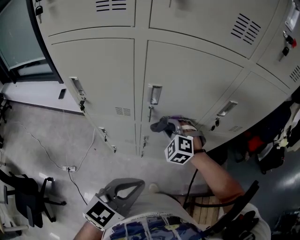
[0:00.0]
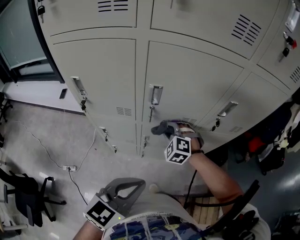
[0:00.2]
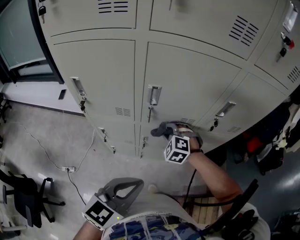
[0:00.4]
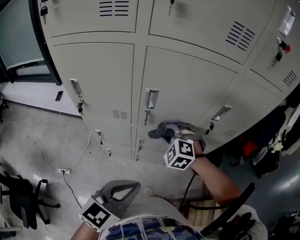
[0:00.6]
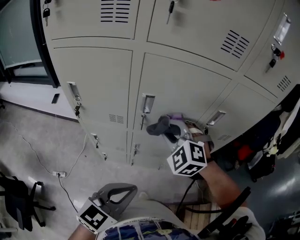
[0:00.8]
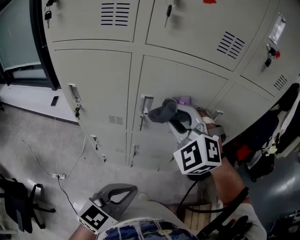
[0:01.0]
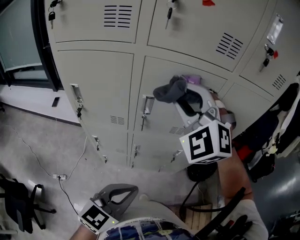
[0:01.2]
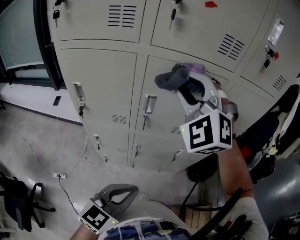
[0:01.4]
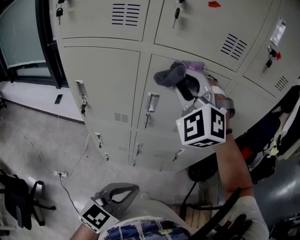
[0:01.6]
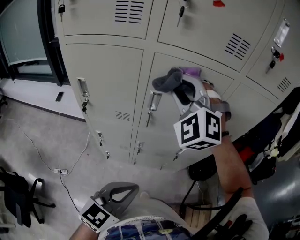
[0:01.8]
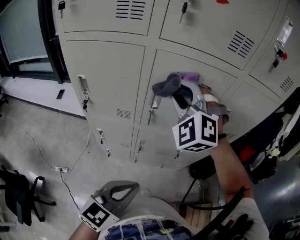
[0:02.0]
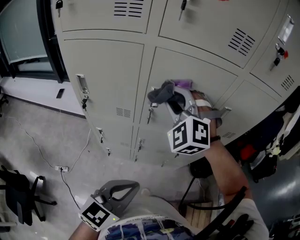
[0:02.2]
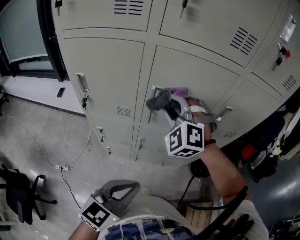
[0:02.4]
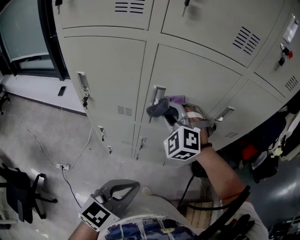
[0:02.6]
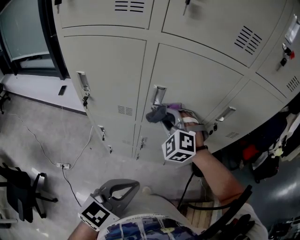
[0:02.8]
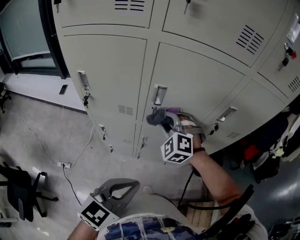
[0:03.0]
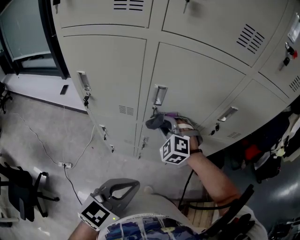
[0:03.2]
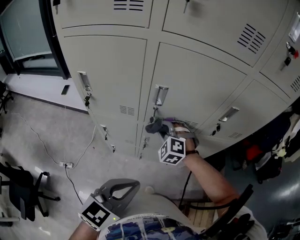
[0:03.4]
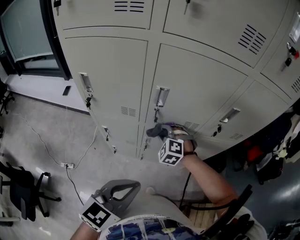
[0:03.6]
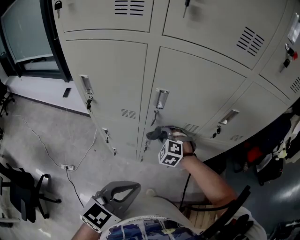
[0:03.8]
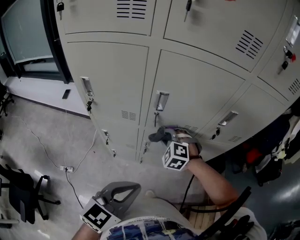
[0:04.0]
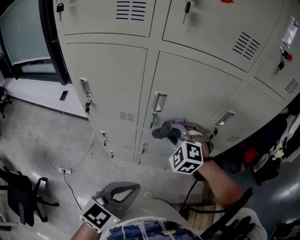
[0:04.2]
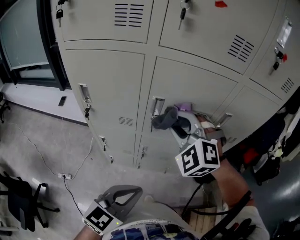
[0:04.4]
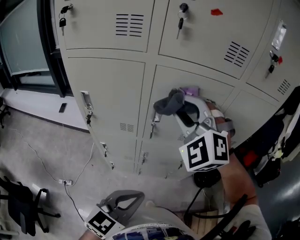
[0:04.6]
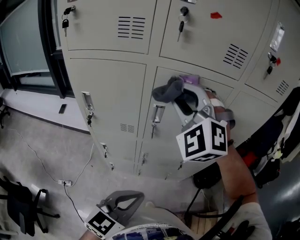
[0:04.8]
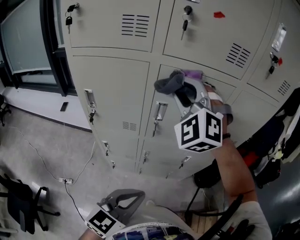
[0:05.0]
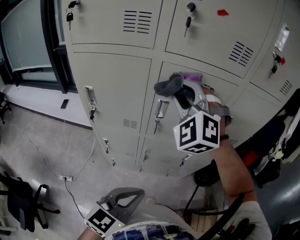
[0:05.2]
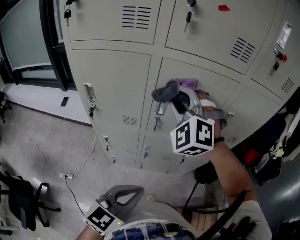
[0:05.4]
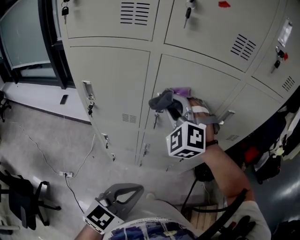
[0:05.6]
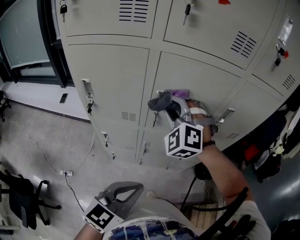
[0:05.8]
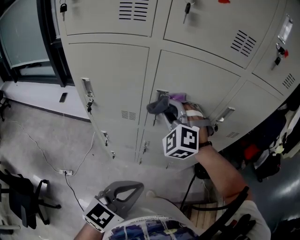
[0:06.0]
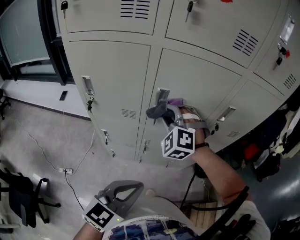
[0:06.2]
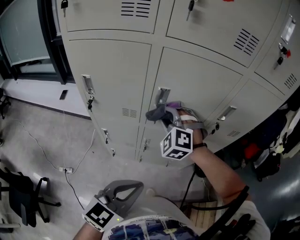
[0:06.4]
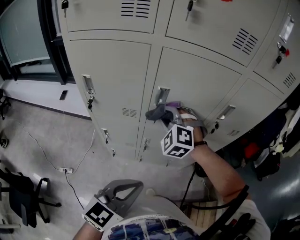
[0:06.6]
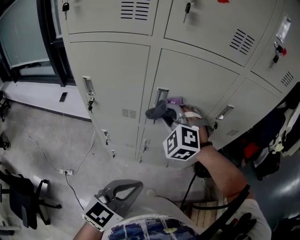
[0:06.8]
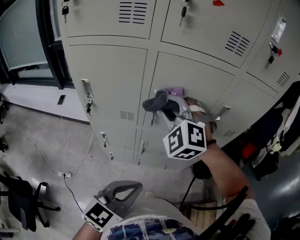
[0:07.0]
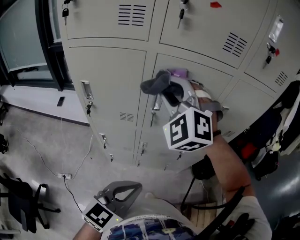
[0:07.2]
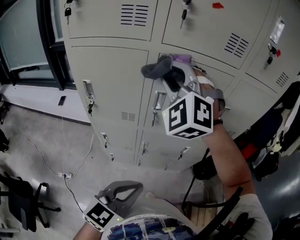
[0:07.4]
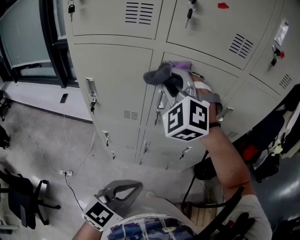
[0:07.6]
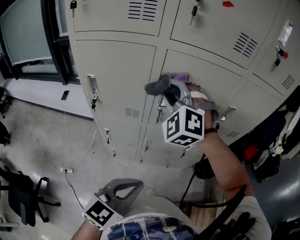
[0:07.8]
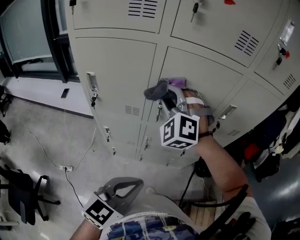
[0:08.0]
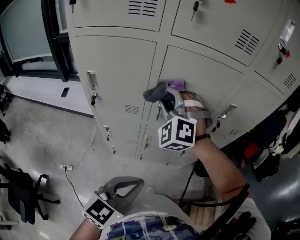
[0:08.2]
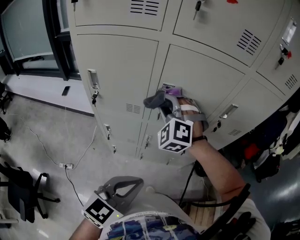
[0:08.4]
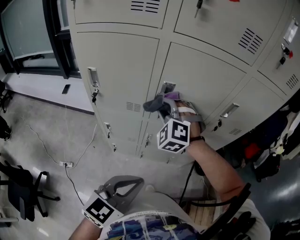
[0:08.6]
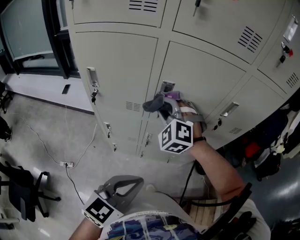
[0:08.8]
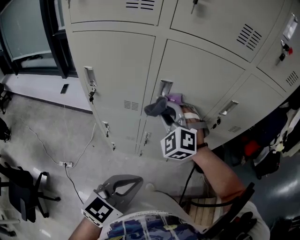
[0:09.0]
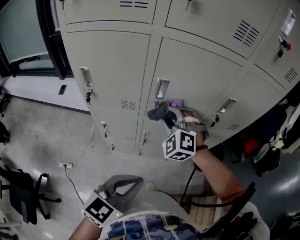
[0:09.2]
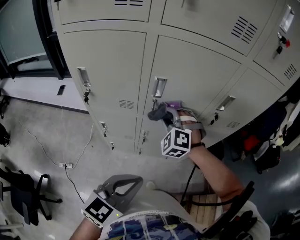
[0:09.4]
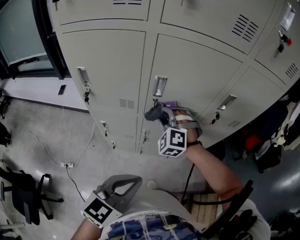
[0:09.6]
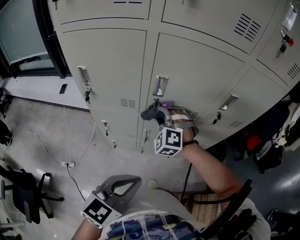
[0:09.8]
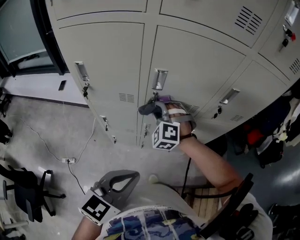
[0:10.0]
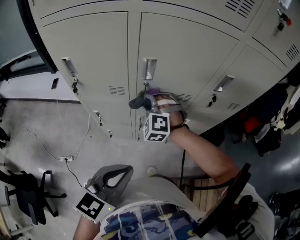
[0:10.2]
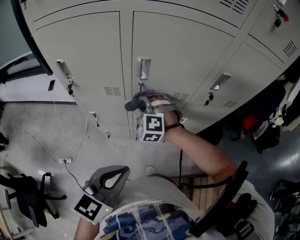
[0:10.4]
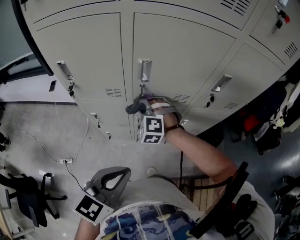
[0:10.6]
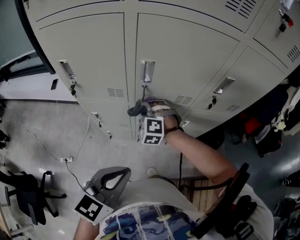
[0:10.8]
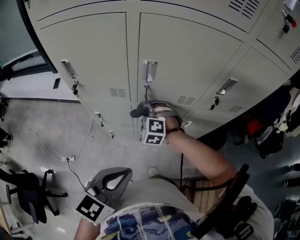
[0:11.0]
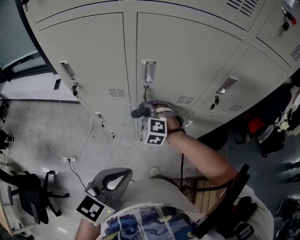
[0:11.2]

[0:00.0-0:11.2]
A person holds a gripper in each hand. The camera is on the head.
0:00.0 to 0:01.6: The right gripper shifts roughly 35 cm upward, and tips its fingers upward by roughly 30 degrees.
0:01.6 to 0:03.2: The right gripper moves downward, some 30 cm, and rotates approximately 30 degrees.
0:03.2 to 0:04.8: The right gripper shifts some 30 cm upward, and turns by approximately 30 degrees.
0:04.8 to 0:06.4: The right gripper travels downward by roughly 20 cm.
0:06.4 to 0:08.0: The right gripper goes approximately 10 cm upward.
0:08.0 to 0:09.6: The right gripper shifts about 15 cm downward.
0:09.6 to 0:11.2: The right gripper shifts approximately 10 cm downward.

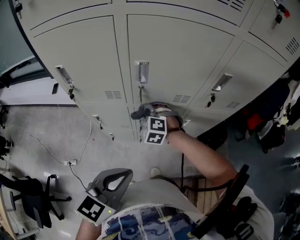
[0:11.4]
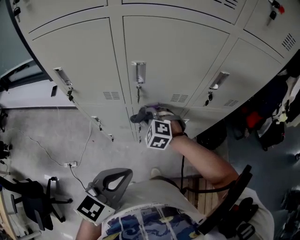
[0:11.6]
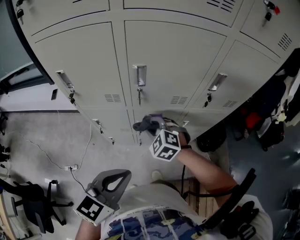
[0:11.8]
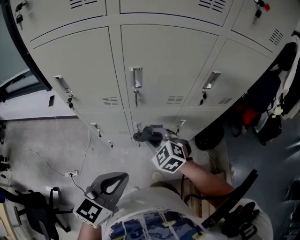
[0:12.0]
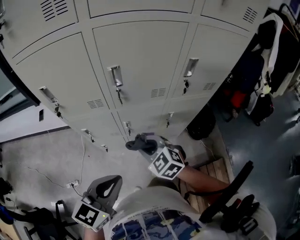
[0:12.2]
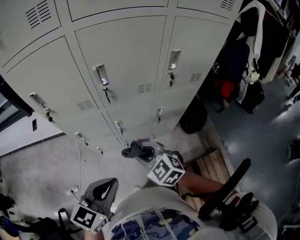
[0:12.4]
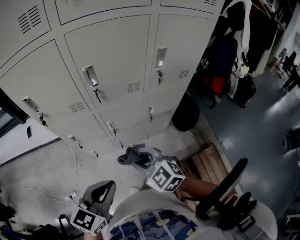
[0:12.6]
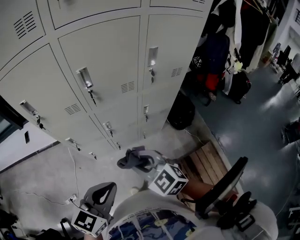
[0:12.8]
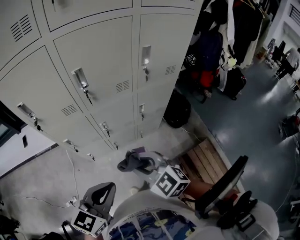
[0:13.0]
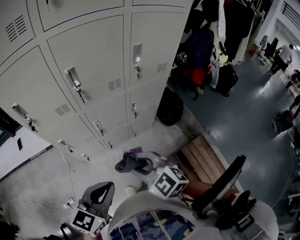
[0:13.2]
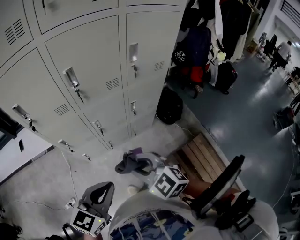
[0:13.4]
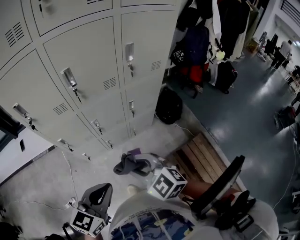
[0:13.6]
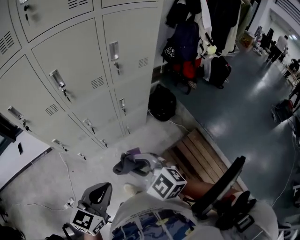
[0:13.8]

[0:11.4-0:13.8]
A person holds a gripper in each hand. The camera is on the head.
0:11.4 to 0:12.6: The left gripper is displaced backward by approximately 5 cm; the right gripper goes some 25 cm backward, and rolls clockwise, seen from behind, by about 40 degrees.
0:12.6 to 0:13.8: The two grippers go about 15 cm backward and to the right.

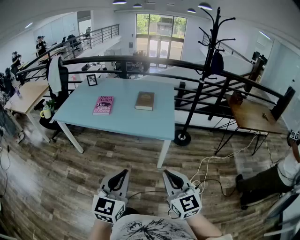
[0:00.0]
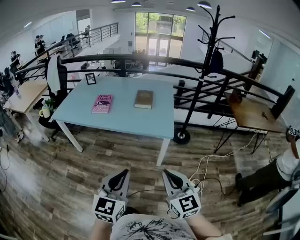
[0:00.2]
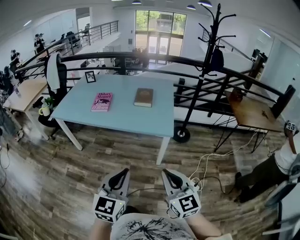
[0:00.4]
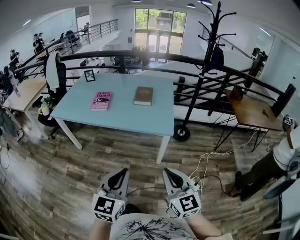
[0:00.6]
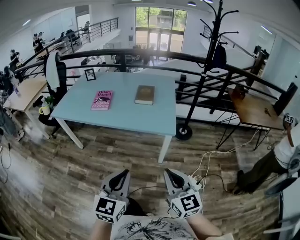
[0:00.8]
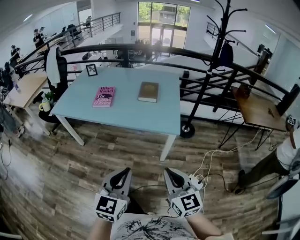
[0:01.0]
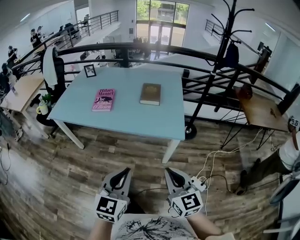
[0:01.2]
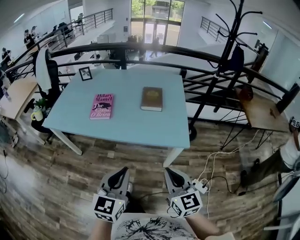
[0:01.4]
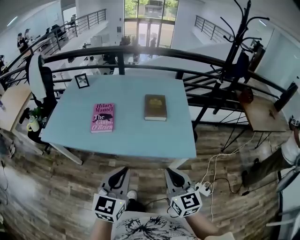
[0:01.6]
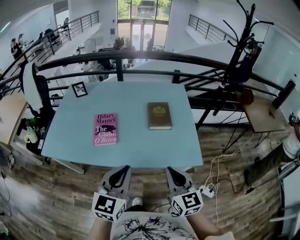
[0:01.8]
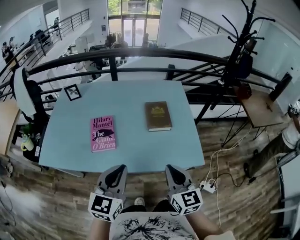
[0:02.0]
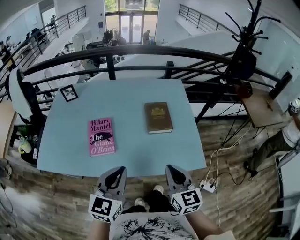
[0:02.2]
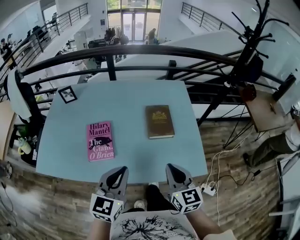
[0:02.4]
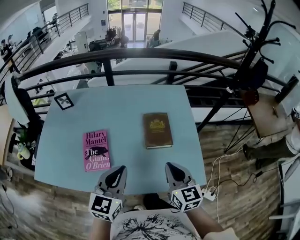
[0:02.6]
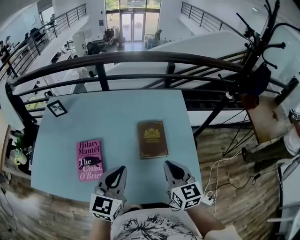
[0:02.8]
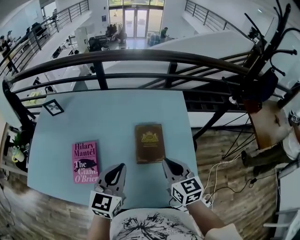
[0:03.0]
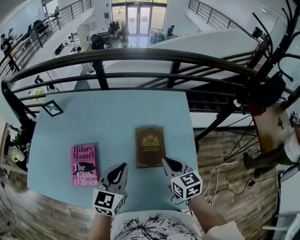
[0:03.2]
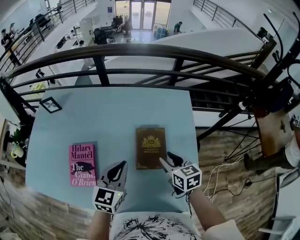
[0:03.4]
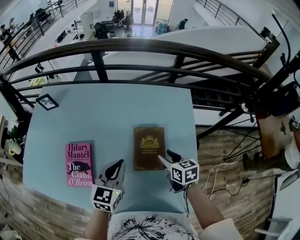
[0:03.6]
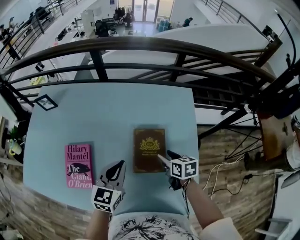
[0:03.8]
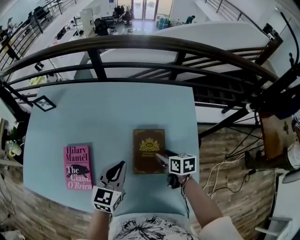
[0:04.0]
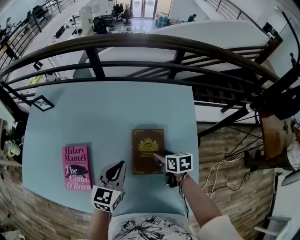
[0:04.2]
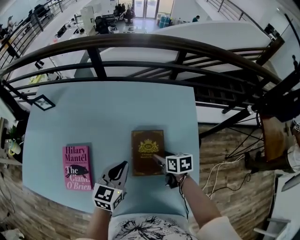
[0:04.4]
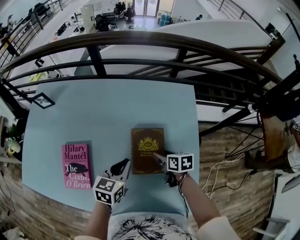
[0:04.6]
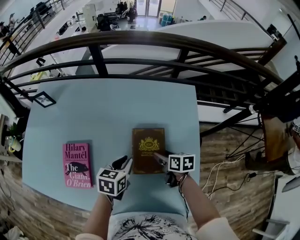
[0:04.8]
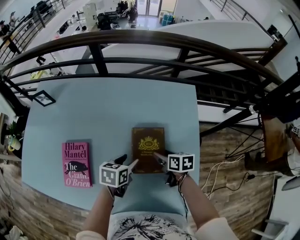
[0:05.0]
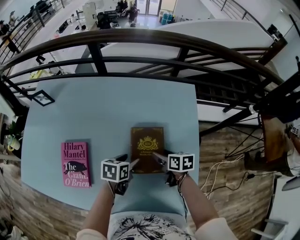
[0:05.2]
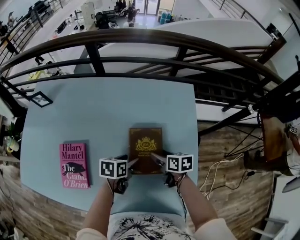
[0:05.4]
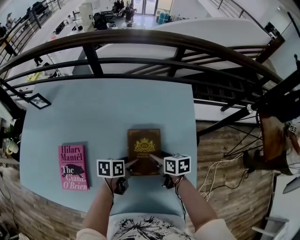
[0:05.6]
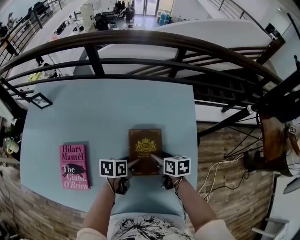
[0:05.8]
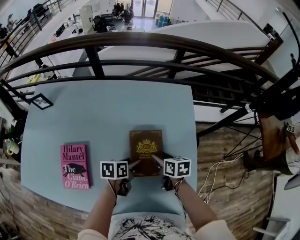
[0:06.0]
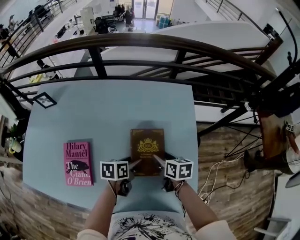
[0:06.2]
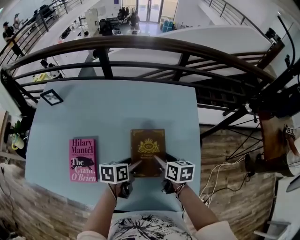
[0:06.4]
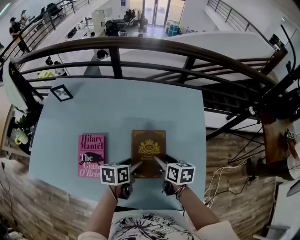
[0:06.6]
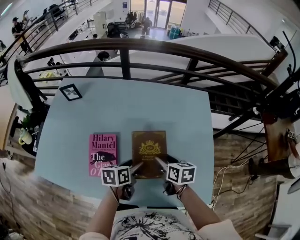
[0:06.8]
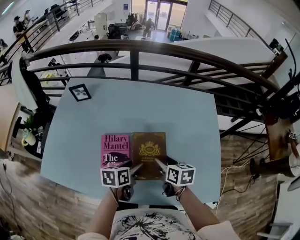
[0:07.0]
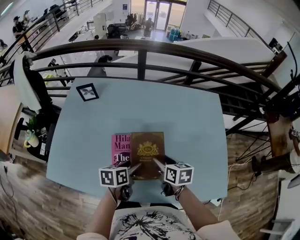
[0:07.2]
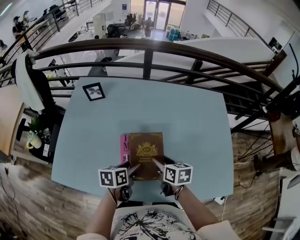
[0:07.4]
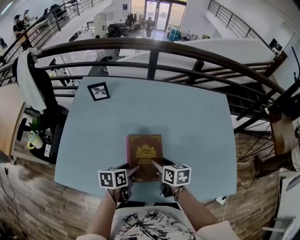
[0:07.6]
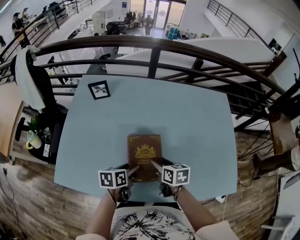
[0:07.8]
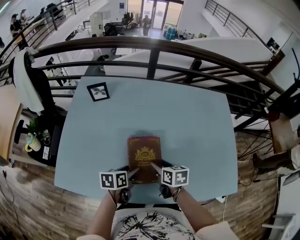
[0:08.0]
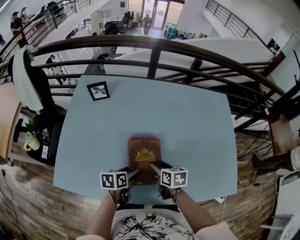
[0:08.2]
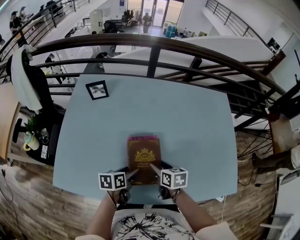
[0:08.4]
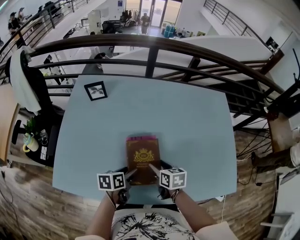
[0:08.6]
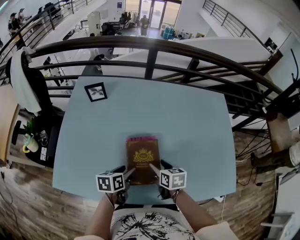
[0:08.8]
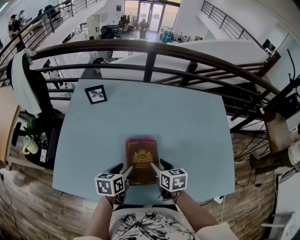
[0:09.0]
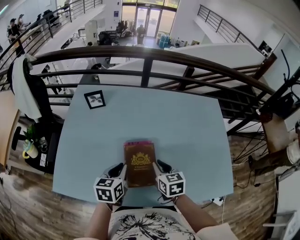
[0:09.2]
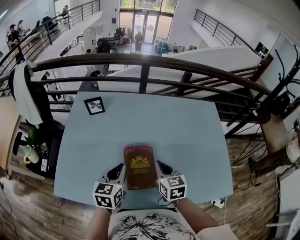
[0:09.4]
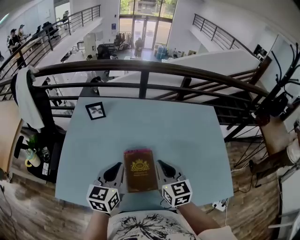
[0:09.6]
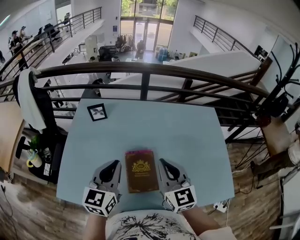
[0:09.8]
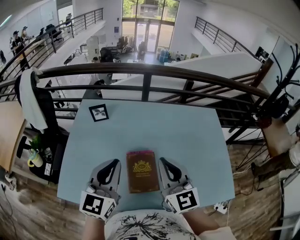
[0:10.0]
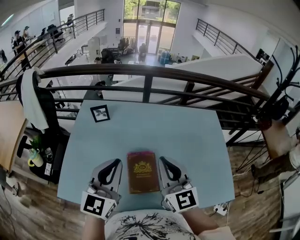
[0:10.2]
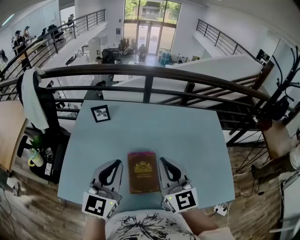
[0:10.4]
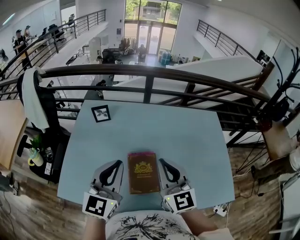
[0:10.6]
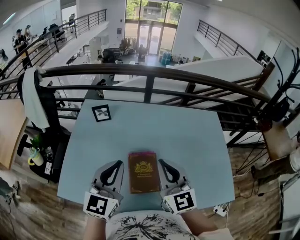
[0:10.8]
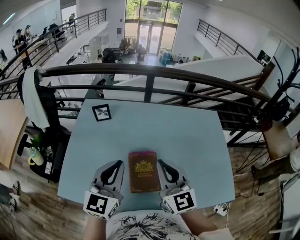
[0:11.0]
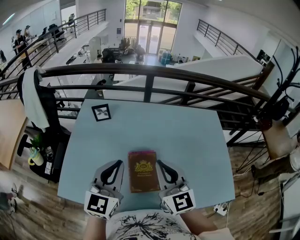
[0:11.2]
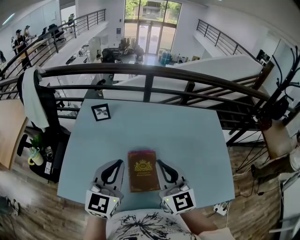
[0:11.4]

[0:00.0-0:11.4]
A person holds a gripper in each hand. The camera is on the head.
0:00.0 to 0:01.4: The right gripper moves forward, roughly 20 cm; the left gripper shifts approximately 20 cm forward and to the left.
0:01.4 to 0:02.8: The two grippers travel together, forward, roughly 40 cm.
0:02.8 to 0:04.2: The right gripper travels downward and forward by roughly 30 cm, turns by about 50 degrees, and opens its fingers. The left gripper heads forward and downward, covering some 20 cm.
0:04.2 to 0:05.6: The left gripper goes some 15 cm downward and to the right, swivels some 50 degrees, and opens its fingers.
0:05.6 to 0:07.2: Both grippers travel together to the left and backward, about 30 cm.
0:07.2 to 0:08.6: Both grippers move to the left and downward, roughly 15 cm.
0:08.6 to 0:10.0: The grippers both shift upward by about 30 cm. The right gripper tilts its fingers some 50 degrees upward, and closes its fingers. The left gripper tilts its fingers about 40 degrees upward, and closes up.
0:10.0 to 0:11.4: There are only small adjustments of the grippers.
